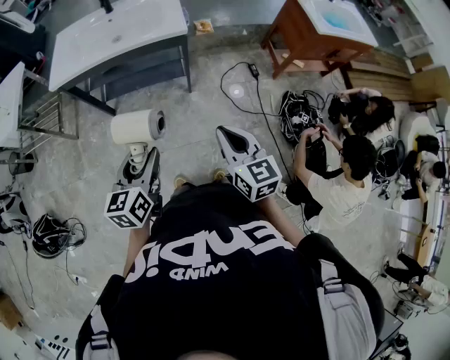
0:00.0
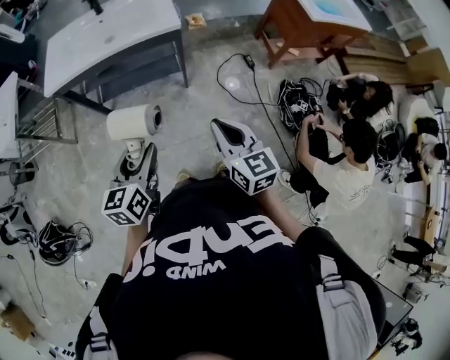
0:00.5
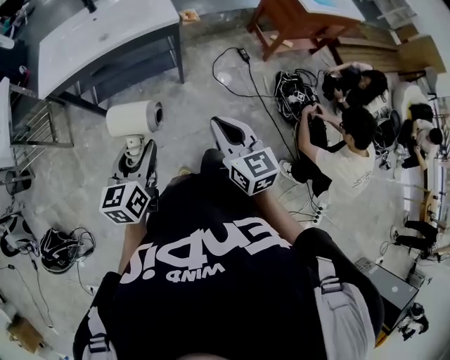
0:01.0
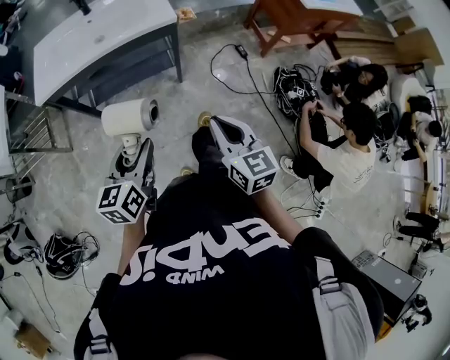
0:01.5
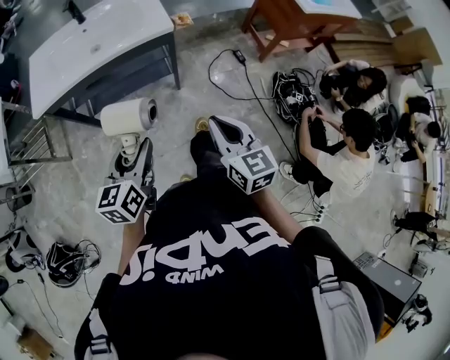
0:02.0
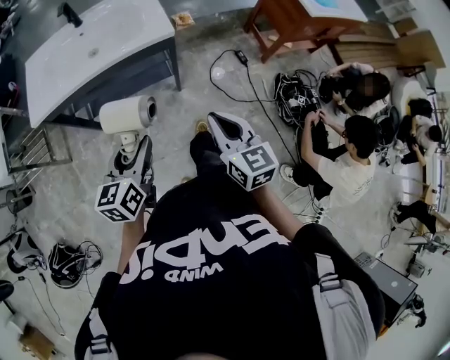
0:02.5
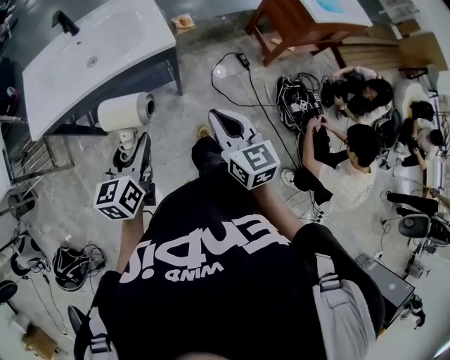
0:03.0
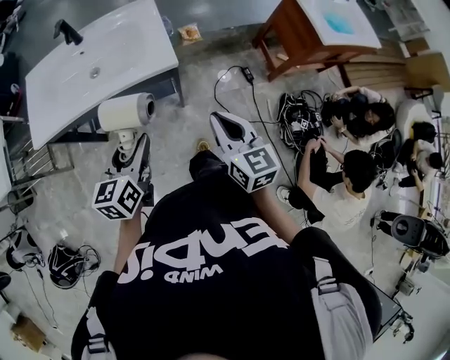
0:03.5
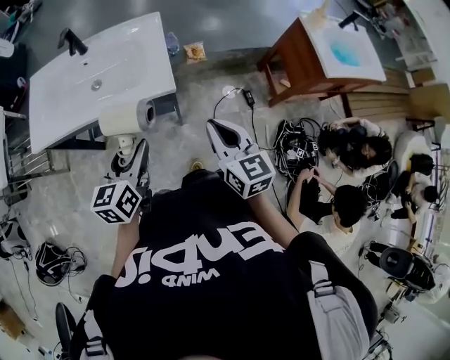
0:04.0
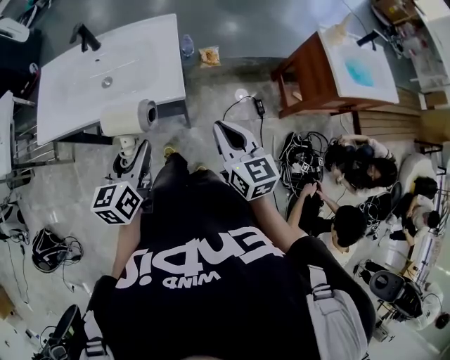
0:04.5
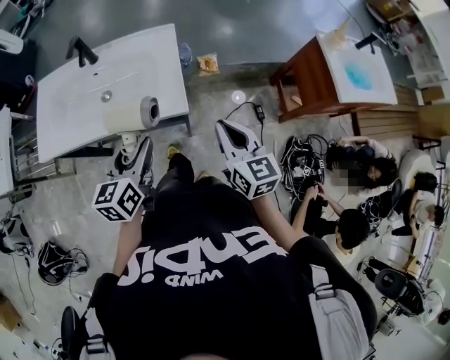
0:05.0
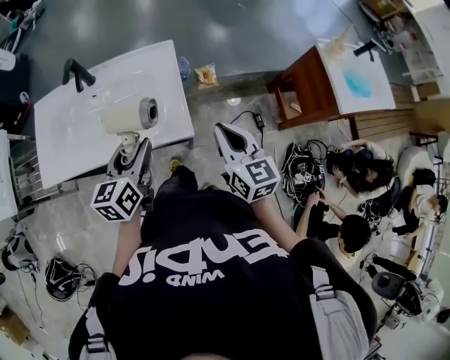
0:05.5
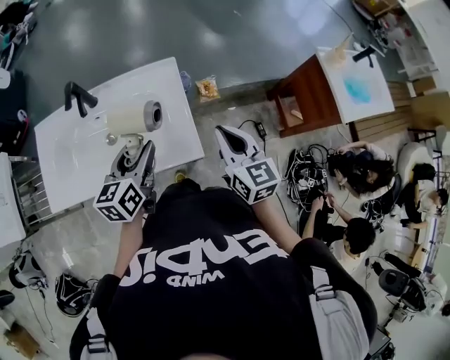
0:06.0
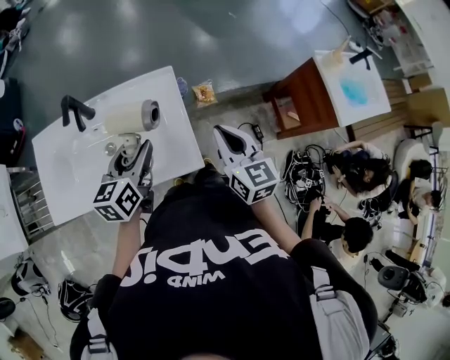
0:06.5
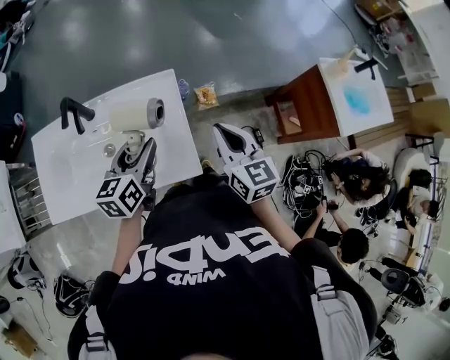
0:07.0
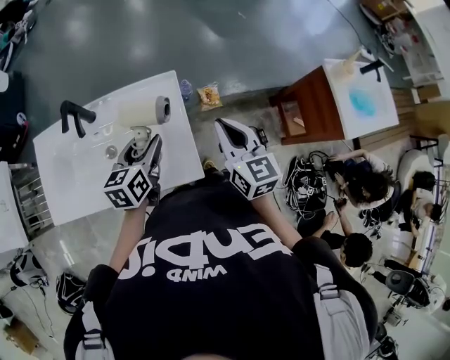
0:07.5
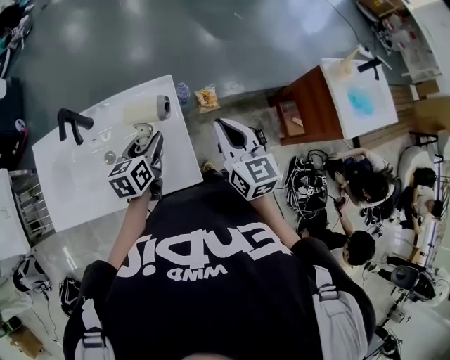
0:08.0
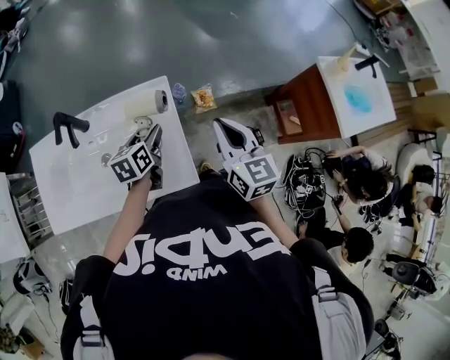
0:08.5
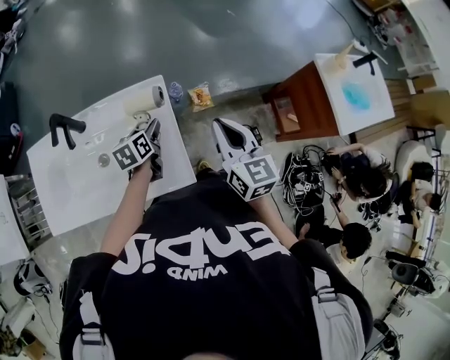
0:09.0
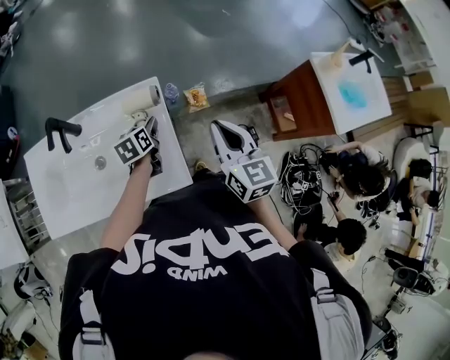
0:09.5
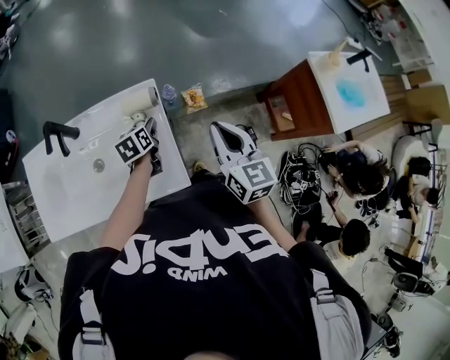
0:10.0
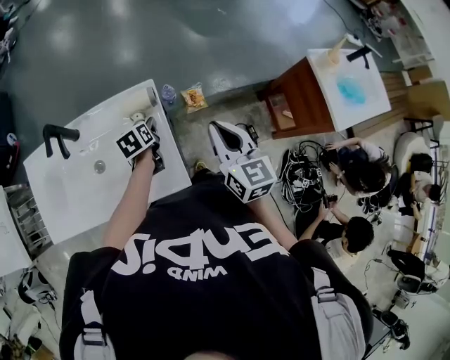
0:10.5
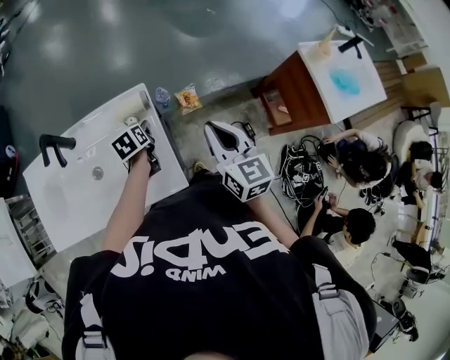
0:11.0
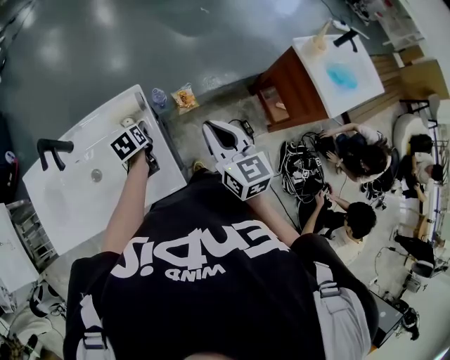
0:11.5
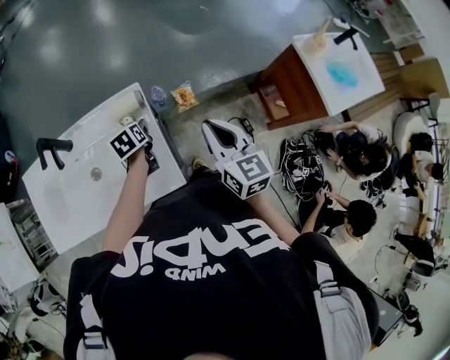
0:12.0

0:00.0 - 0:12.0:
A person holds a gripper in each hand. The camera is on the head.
0:00.0 - 0:02.0: The right gripper is displaced forward and to the left by roughly 10 cm. Meanwhile the left gripper is displaced forward by approximately 10 cm.
0:02.0 - 0:04.0: The two grippers go some 25 cm forward.
0:04.0 - 0:06.0: The two grippers go about 25 cm forward.
0:06.0 - 0:08.0: The left gripper travels forward and downward by approximately 15 cm; the right gripper moves forward, about 10 cm.
0:08.0 - 0:10.0: The left gripper is displaced downward and forward by some 10 cm.
0:10.0 - 0:12.0: The grippers make only small movements.

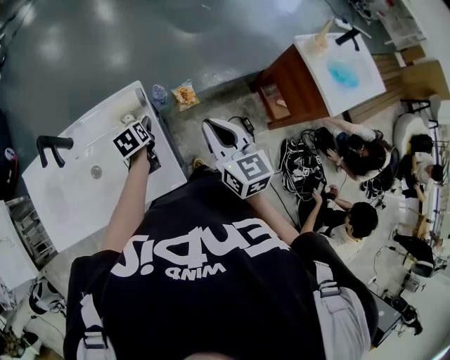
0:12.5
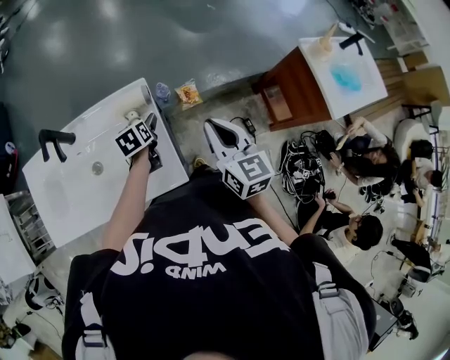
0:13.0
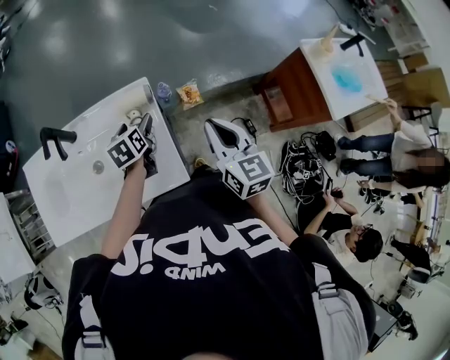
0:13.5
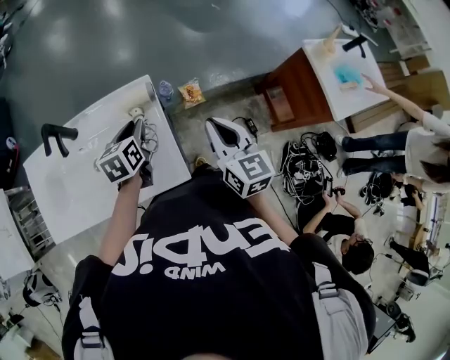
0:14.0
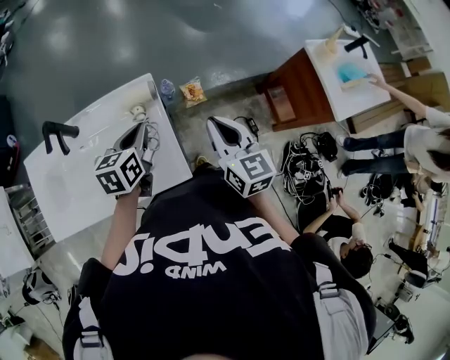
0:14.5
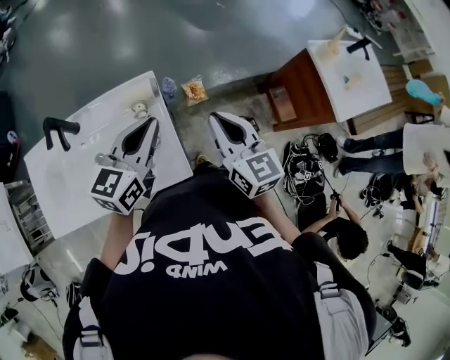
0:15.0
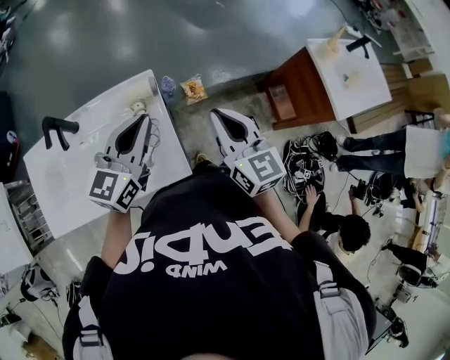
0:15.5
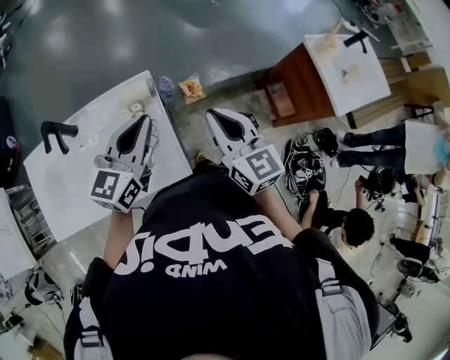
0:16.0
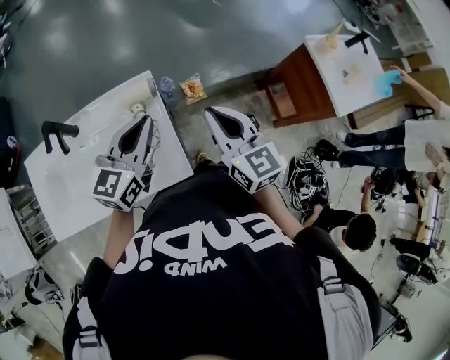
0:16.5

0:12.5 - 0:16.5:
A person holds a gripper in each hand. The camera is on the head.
0:12.5 - 0:14.5: The left gripper moves upward and backward, roughly 15 cm, turns by about 30 degrees, and closes.
0:14.5 - 0:16.5: The left gripper travels upward by approximately 10 cm, and swivels some 30 degrees.

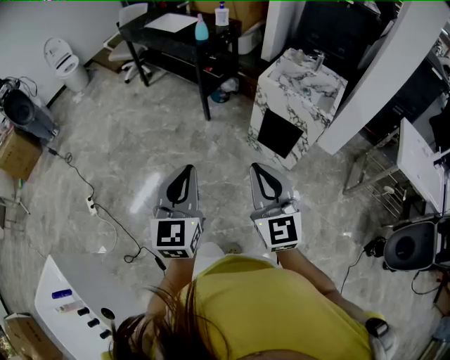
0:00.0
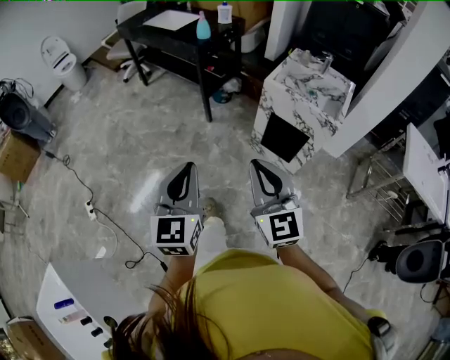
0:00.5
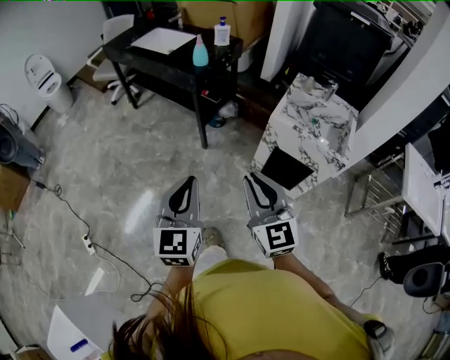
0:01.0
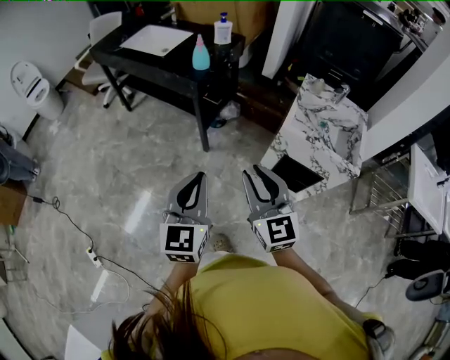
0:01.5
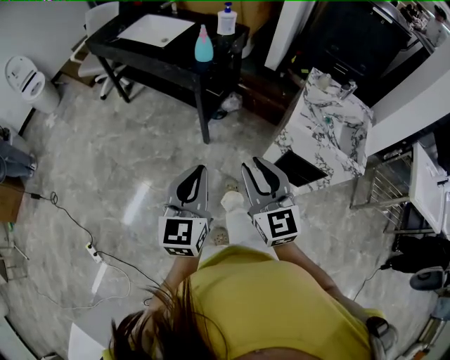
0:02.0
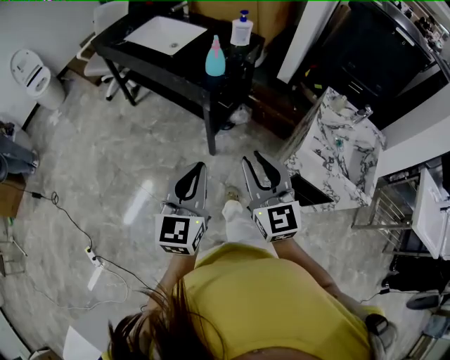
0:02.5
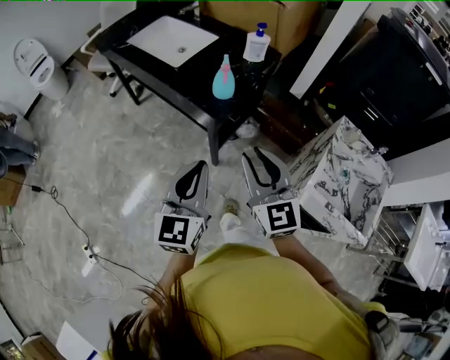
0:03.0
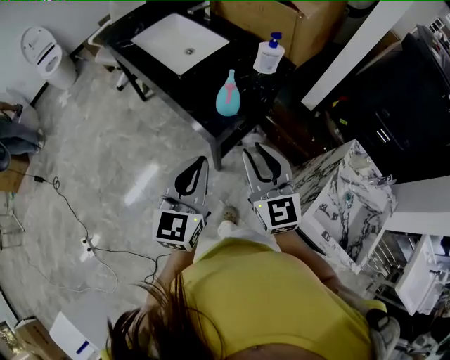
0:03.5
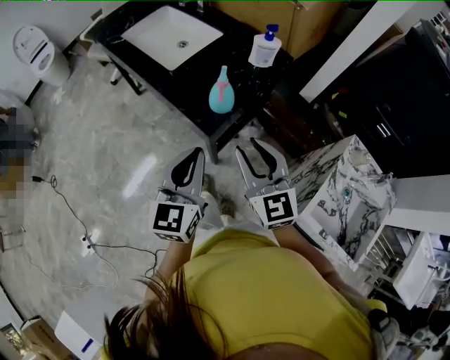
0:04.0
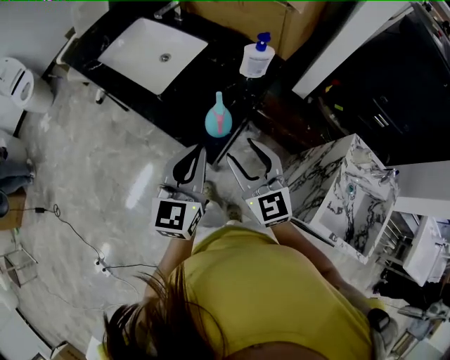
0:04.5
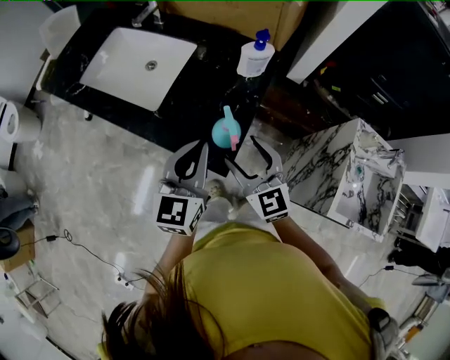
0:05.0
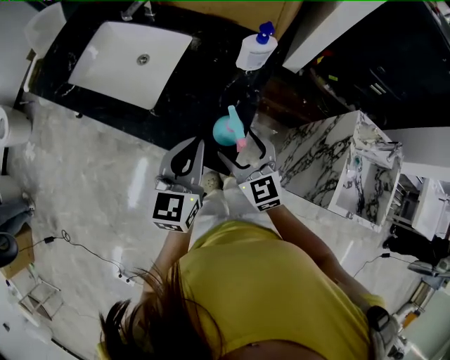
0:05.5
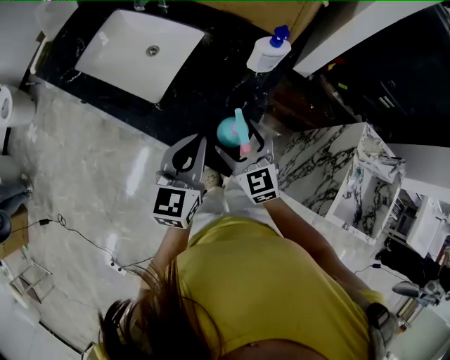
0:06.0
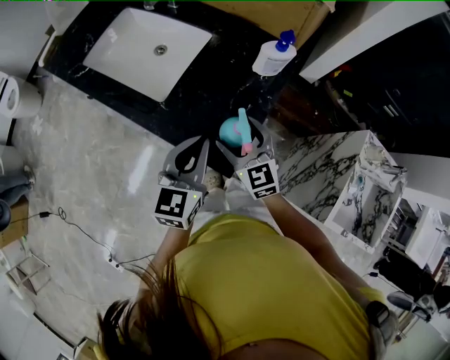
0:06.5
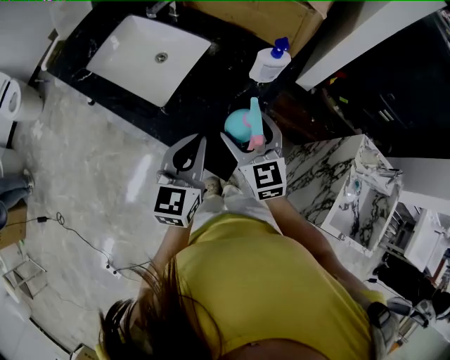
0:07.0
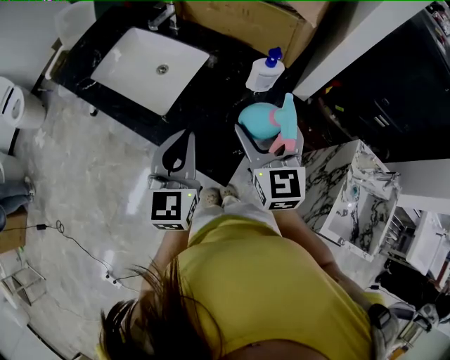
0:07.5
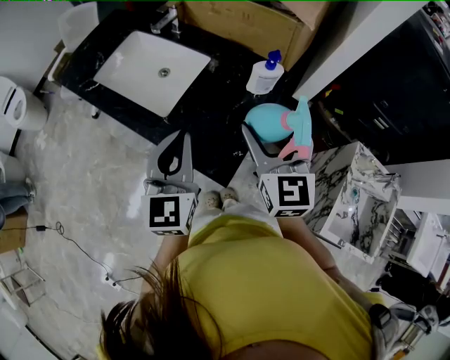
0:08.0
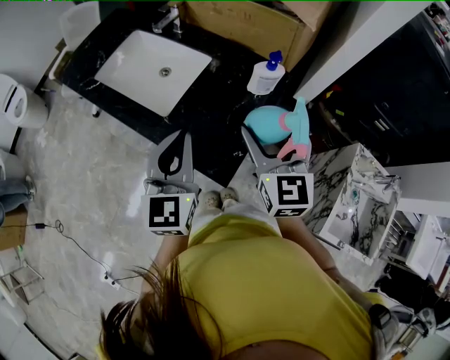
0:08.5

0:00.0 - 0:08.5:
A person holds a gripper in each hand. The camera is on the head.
0:00.0 - 0:02.0: The pair of grippers is taken forward, approximately 40 cm.
0:02.0 - 0:04.0: The two grippers go some 40 cm forward.
0:04.0 - 0:06.5: The left gripper travels forward by approximately 20 cm. Meanwhile the right gripper shifts approximately 25 cm forward, downward and to the left, and opens its fingers.
0:06.5 - 0:08.5: The left gripper shifts about 10 cm upward. The right gripper travels upward by about 20 cm, and swivels about 20 degrees.

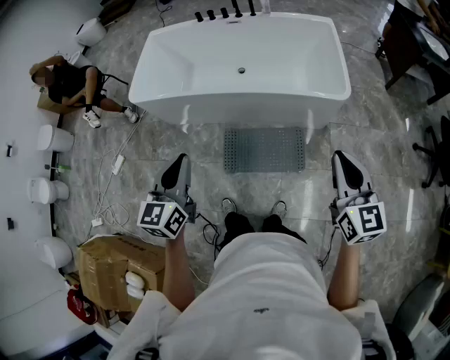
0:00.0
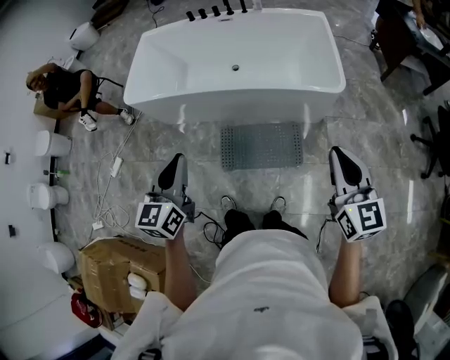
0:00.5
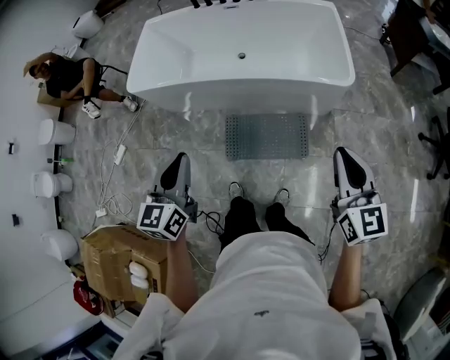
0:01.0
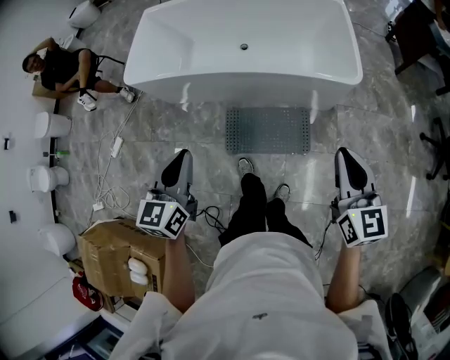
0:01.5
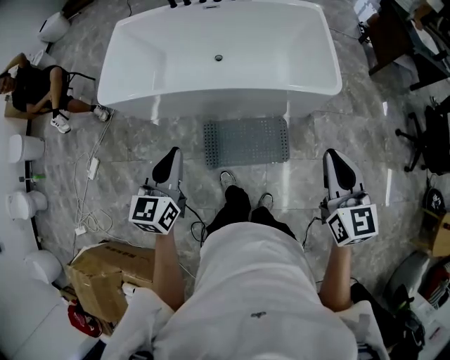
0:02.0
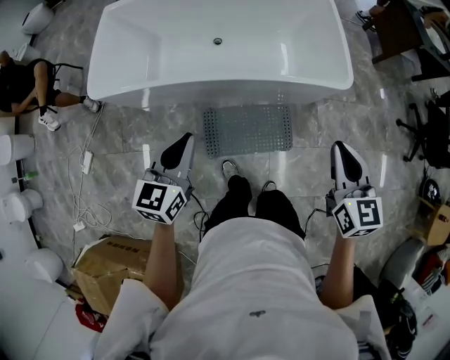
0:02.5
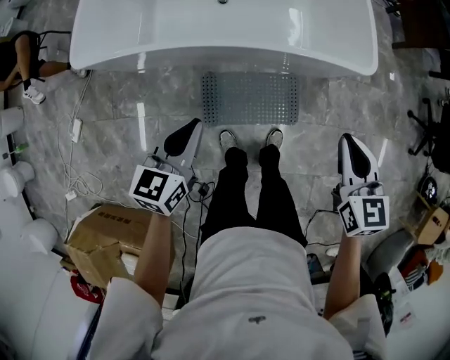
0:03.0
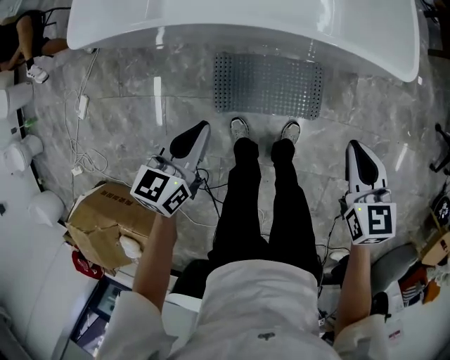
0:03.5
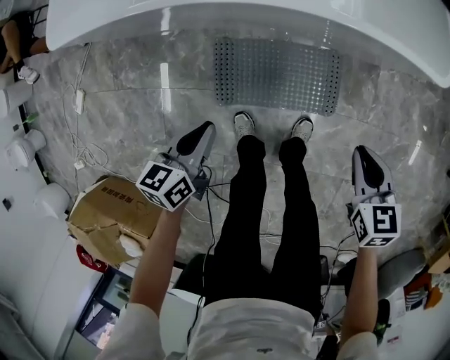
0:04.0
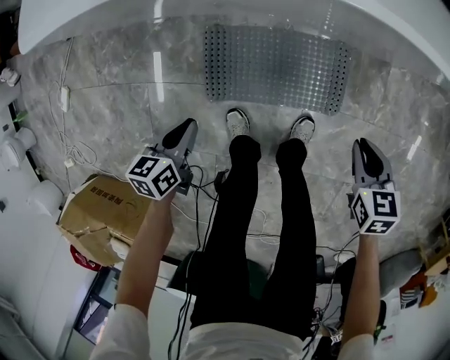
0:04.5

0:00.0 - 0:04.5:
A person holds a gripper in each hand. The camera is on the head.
0:00.0 - 0:02.0: The left gripper heads forward and downward, covering approximately 10 cm. The right gripper heads forward and to the left, covering roughly 10 cm.
0:02.0 - 0:04.5: Both grippers travel together downward, roughly 60 cm. The left gripper angles its fingers downward, by about 30 degrees, while the right gripper tilts its fingers some 40 degrees downward.
